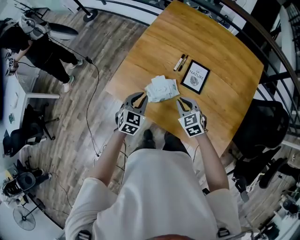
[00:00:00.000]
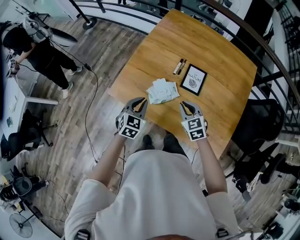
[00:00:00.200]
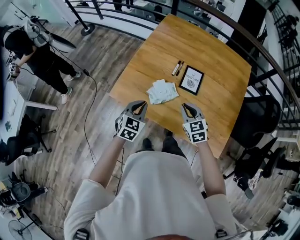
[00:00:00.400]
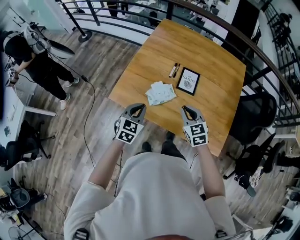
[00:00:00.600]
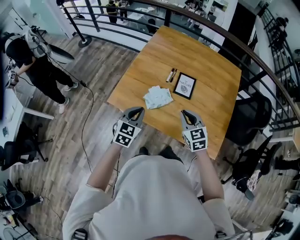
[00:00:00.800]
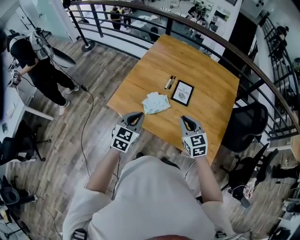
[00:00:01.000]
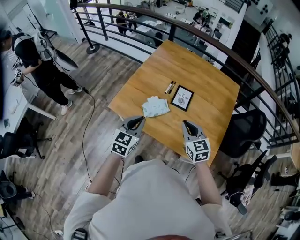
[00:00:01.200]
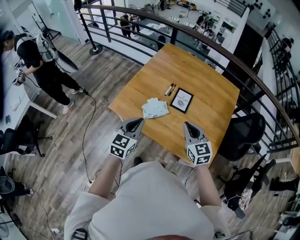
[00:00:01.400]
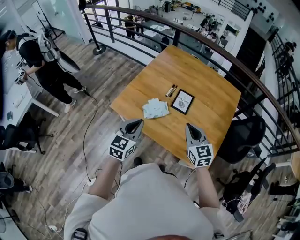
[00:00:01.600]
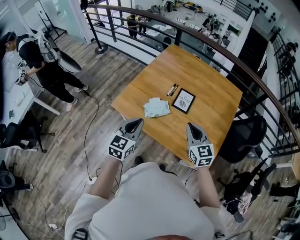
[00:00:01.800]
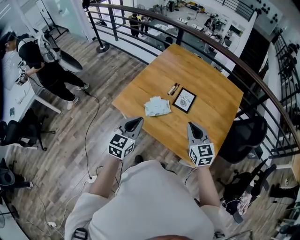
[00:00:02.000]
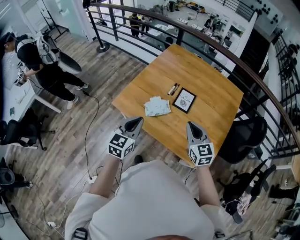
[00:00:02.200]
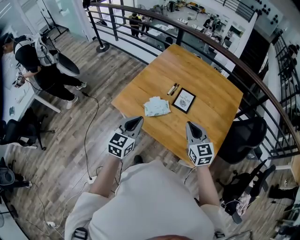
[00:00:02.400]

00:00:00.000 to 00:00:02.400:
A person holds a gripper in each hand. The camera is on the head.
00:00:00.000 to 00:00:01.200: The grippers both shift upward and backward by some 20 cm. The right gripper turns by about 20 degrees.
00:00:01.200 to 00:00:02.400: There are only small adjustments of the grippers.

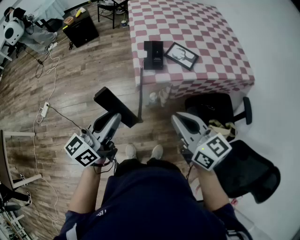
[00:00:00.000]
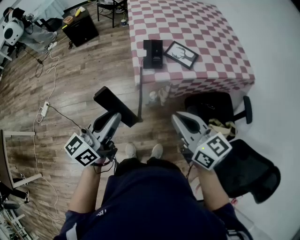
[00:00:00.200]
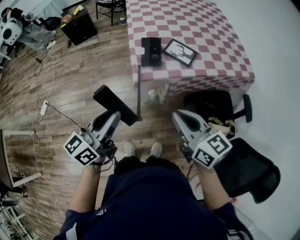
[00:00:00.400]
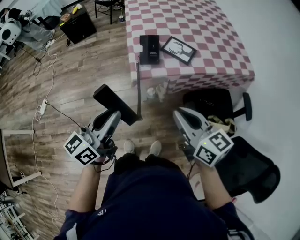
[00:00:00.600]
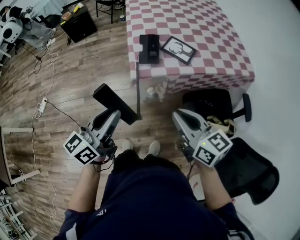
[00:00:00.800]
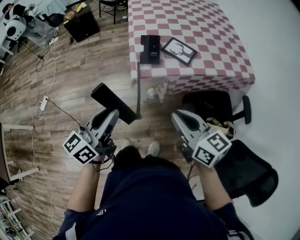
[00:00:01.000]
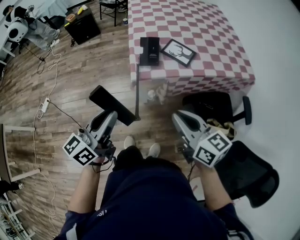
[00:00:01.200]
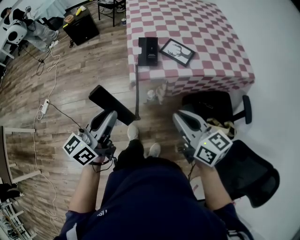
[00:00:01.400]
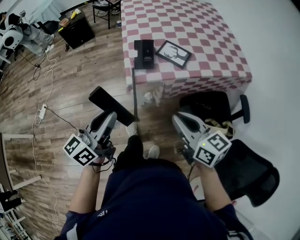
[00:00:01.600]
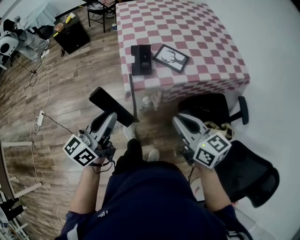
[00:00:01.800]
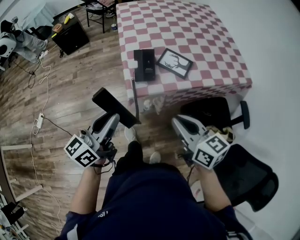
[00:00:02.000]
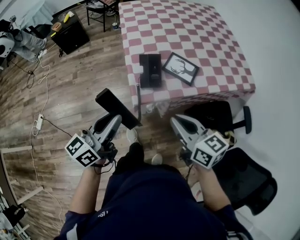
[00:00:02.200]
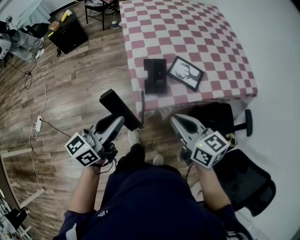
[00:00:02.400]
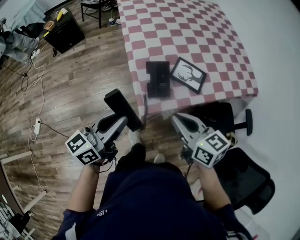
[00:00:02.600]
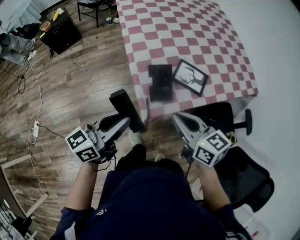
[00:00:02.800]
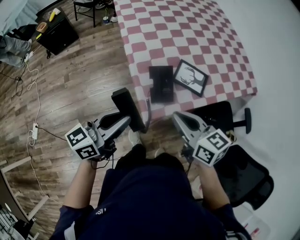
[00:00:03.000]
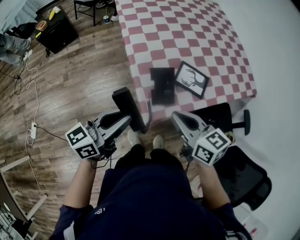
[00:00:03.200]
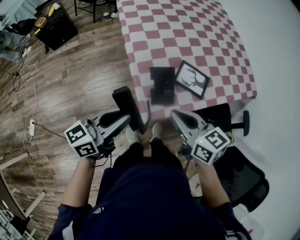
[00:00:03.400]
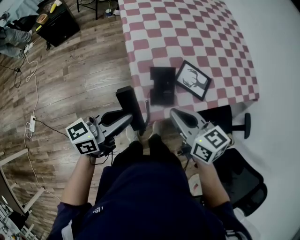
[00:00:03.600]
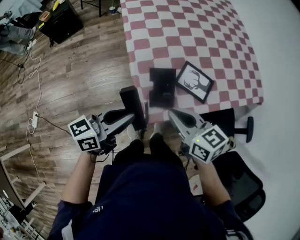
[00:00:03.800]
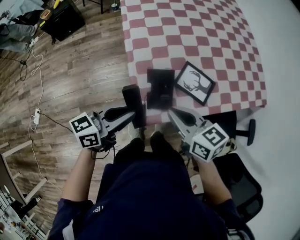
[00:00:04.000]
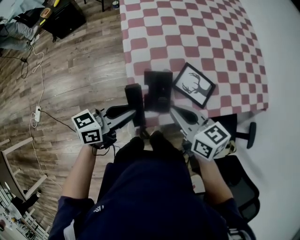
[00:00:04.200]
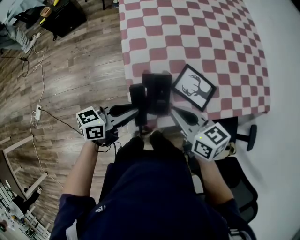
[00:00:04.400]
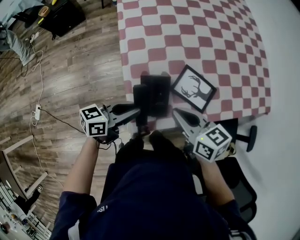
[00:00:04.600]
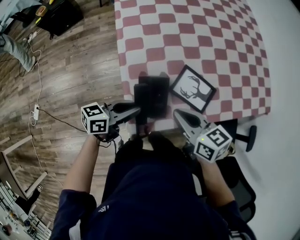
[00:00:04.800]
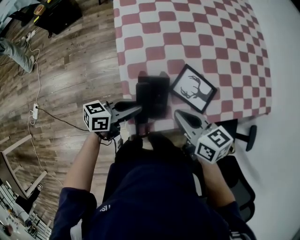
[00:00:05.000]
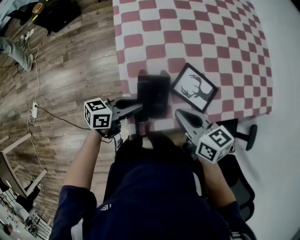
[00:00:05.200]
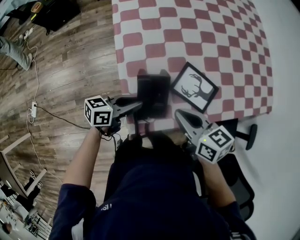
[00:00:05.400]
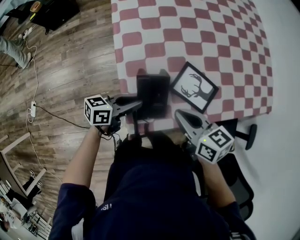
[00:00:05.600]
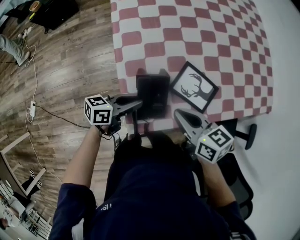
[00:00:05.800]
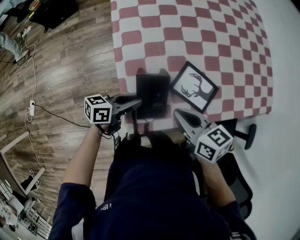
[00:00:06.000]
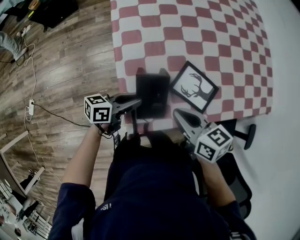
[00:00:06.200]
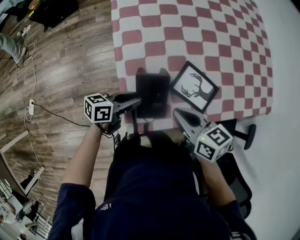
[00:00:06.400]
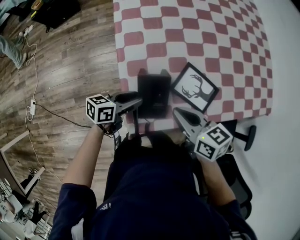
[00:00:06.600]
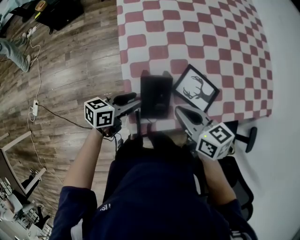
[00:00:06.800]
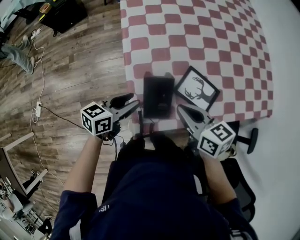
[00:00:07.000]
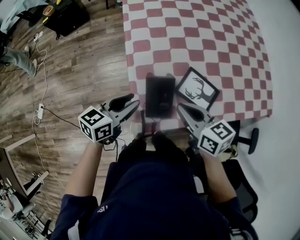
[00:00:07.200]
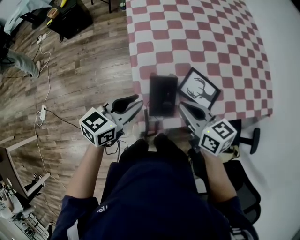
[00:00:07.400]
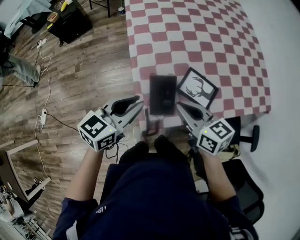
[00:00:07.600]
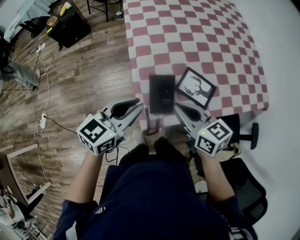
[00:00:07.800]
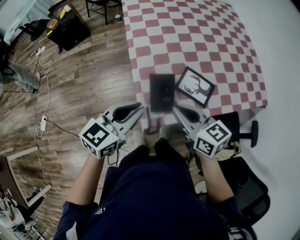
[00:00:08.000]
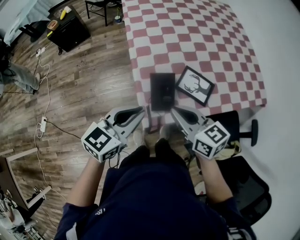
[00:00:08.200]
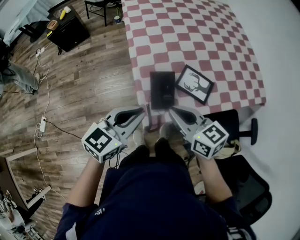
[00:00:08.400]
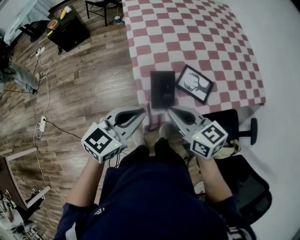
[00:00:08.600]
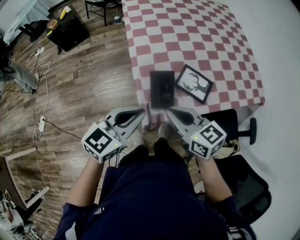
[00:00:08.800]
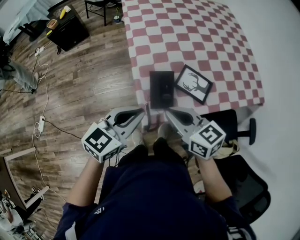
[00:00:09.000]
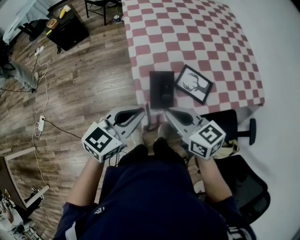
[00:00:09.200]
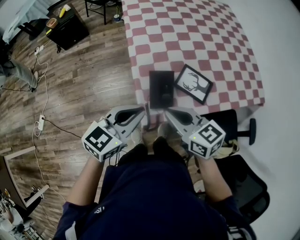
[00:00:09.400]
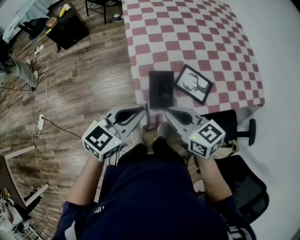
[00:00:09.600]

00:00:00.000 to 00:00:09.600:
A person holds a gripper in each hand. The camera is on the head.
00:00:00.000 to 00:00:01.600: The right gripper heads to the right, covering roughly 5 cm.
00:00:01.600 to 00:00:03.200: The left gripper is displaced forward by some 25 cm, and changes its angle by some 30 degrees; the right gripper goes roughly 30 cm forward and to the left.
00:00:03.200 to 00:00:04.800: The left gripper heads downward, forward and to the right, covering some 20 cm, and rotates roughly 20 degrees. Meanwhile the right gripper moves forward, downward and to the right, roughly 15 cm.
00:00:04.800 to 00:00:06.400: The left gripper is displaced downward by some 5 cm.
00:00:06.400 to 00:00:08.000: The right gripper travels upward and backward by approximately 10 cm, while the left gripper moves upward, some 20 cm, and changes its angle by about 40 degrees.
00:00:08.000 to 00:00:09.600: The grippers move only a little.

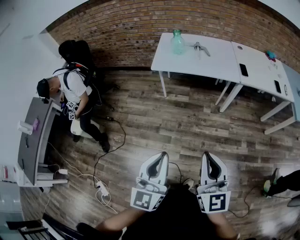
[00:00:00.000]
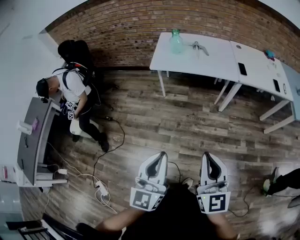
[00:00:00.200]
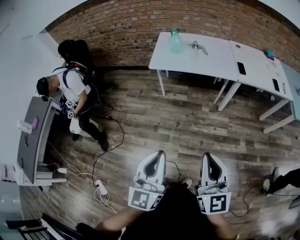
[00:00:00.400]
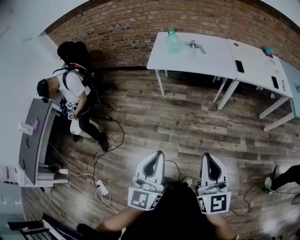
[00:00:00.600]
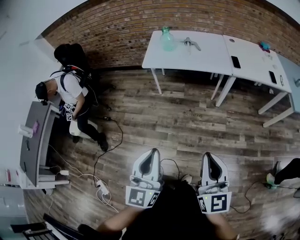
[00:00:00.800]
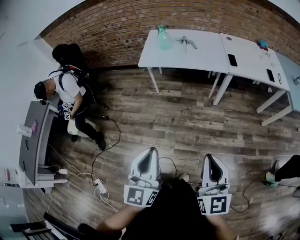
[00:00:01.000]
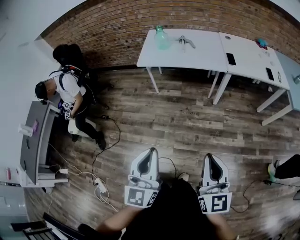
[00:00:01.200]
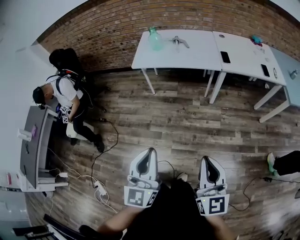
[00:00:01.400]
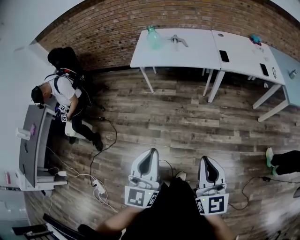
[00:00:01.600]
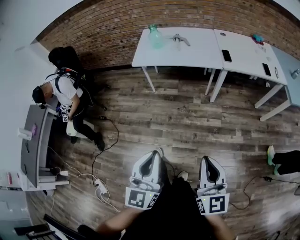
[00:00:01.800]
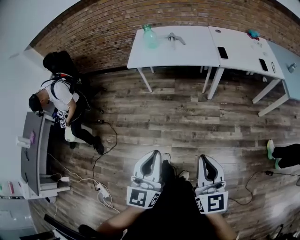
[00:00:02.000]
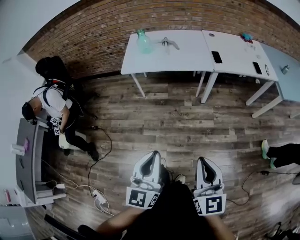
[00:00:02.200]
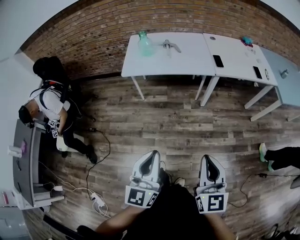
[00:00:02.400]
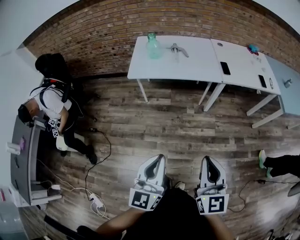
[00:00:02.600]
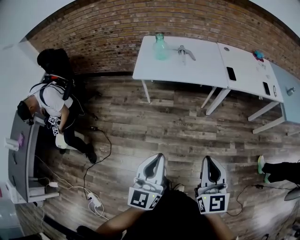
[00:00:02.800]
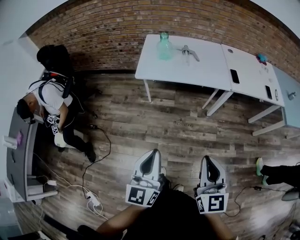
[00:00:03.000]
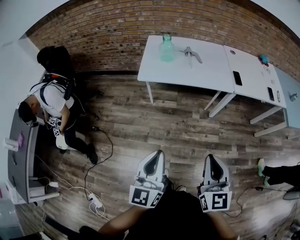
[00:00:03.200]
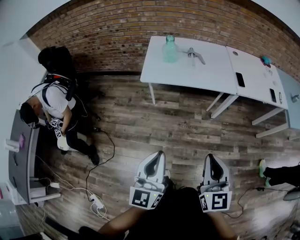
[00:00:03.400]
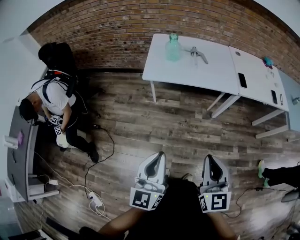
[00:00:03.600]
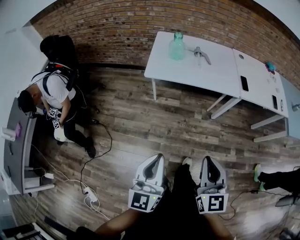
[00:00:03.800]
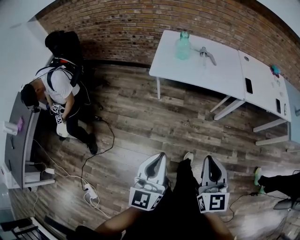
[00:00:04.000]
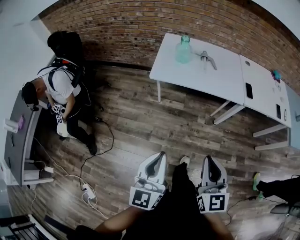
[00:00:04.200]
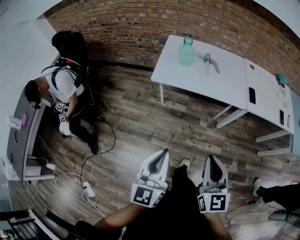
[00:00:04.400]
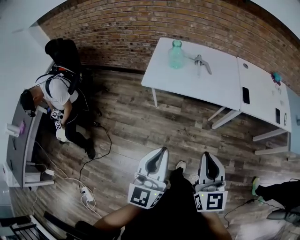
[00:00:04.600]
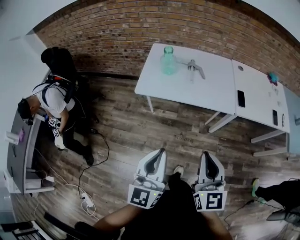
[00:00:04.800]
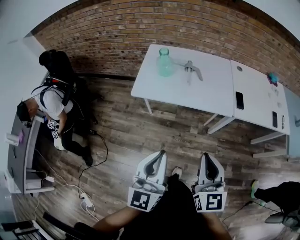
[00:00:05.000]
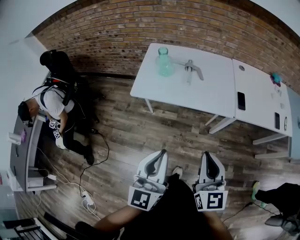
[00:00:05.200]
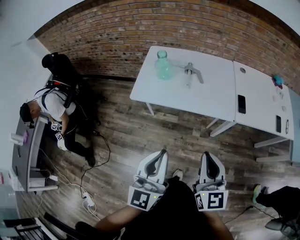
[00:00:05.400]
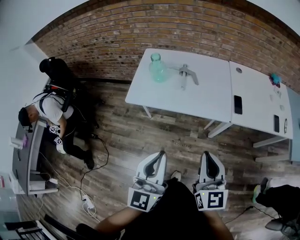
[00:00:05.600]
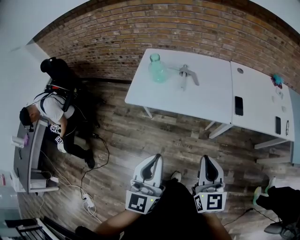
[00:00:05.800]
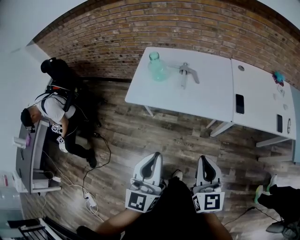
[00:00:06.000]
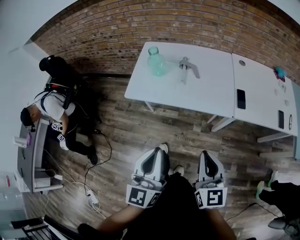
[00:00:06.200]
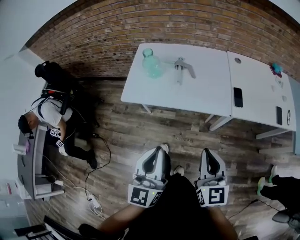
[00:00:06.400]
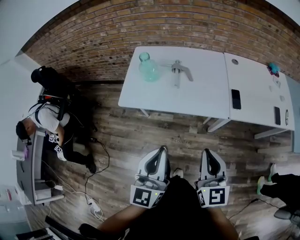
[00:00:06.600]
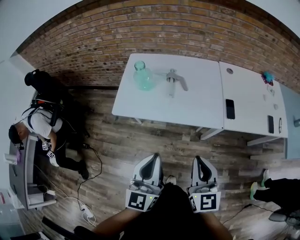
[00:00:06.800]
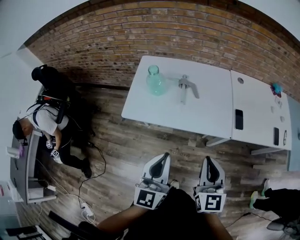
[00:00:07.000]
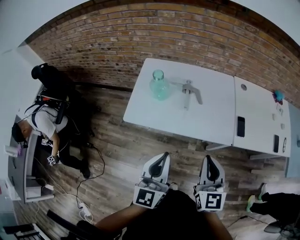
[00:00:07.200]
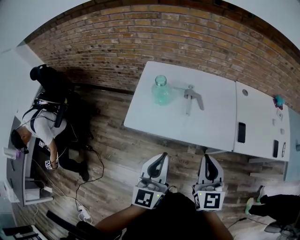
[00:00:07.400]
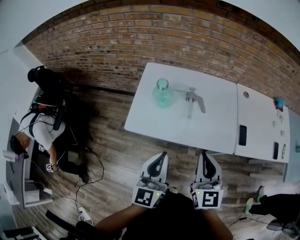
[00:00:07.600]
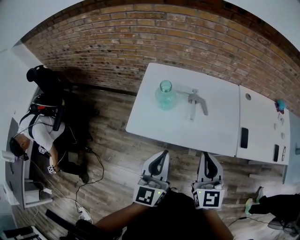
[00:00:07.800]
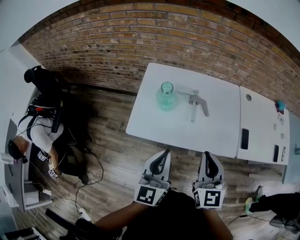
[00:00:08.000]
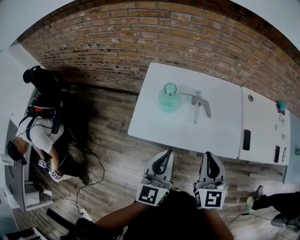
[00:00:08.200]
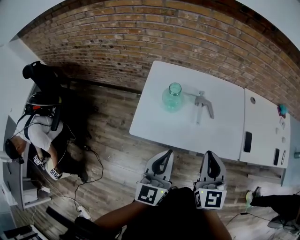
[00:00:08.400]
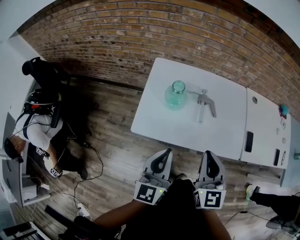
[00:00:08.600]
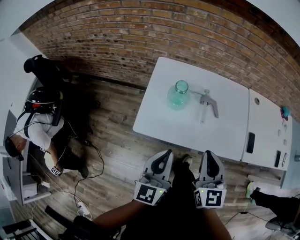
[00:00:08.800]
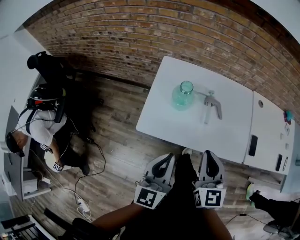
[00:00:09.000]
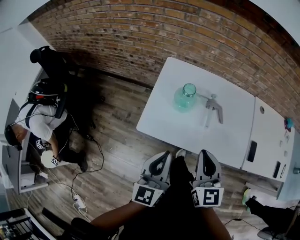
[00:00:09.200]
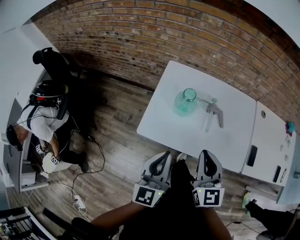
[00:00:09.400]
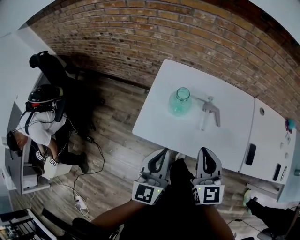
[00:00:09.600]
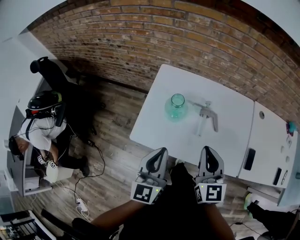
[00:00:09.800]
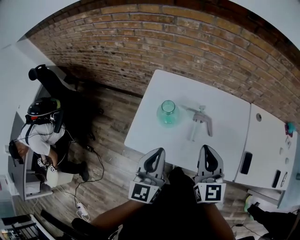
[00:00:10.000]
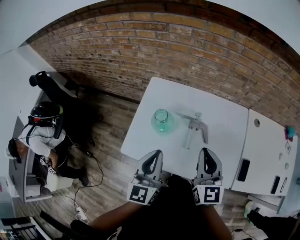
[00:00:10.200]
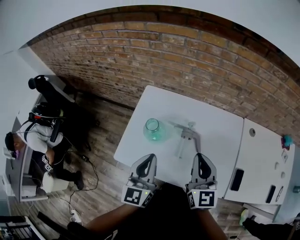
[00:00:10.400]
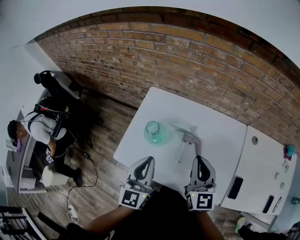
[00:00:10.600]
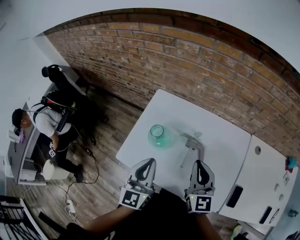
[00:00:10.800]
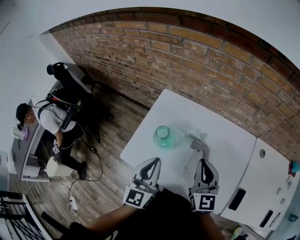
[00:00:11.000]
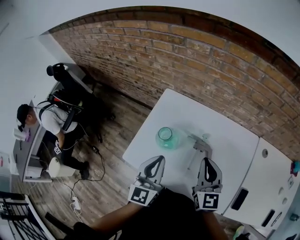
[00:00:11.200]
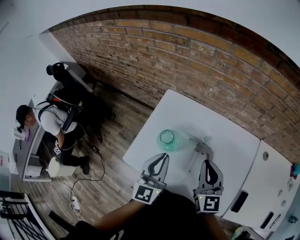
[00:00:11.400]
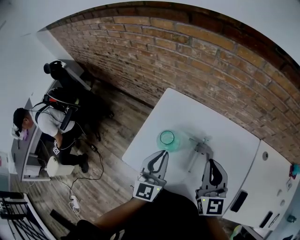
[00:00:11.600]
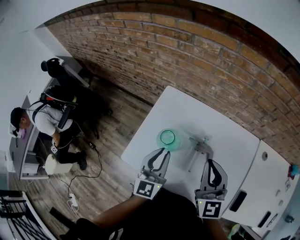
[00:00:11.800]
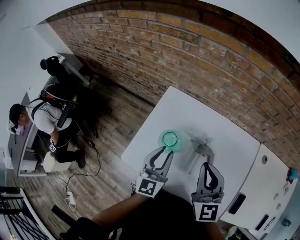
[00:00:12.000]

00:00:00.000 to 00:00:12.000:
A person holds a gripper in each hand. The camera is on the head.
00:00:00.000 to 00:00:01.600: The right gripper travels to the right and backward by roughly 15 cm; the left gripper shifts roughly 10 cm to the right.
00:00:01.600 to 00:00:03.000: Both grippers travel together forward and to the left, roughly 20 cm.
00:00:03.000 to 00:00:04.400: The two grippers go some 10 cm forward.
00:00:04.400 to 00:00:06.000: The two grippers go about 25 cm to the right and forward.
00:00:06.000 to 00:00:07.600: The left gripper travels forward by some 20 cm, while the right gripper goes about 25 cm forward and to the left.
00:00:07.600 to 00:00:09.000: The left gripper shifts roughly 5 cm to the left. Meanwhile the right gripper is displaced to the left and forward by approximately 10 cm.
00:00:09.000 to 00:00:10.400: The two grippers go roughly 20 cm forward and to the right.
00:00:10.400 to 00:00:12.000: The right gripper goes approximately 10 cm forward and to the left, while the left gripper is displaced forward and downward by some 10 cm.
